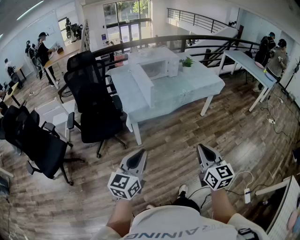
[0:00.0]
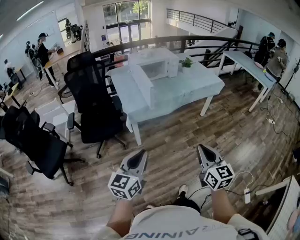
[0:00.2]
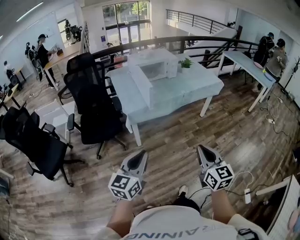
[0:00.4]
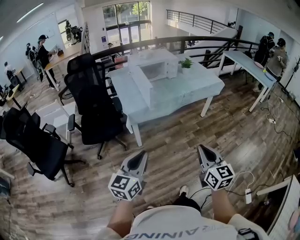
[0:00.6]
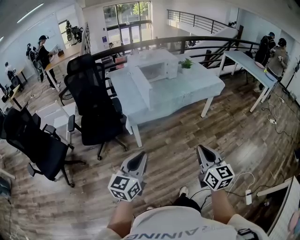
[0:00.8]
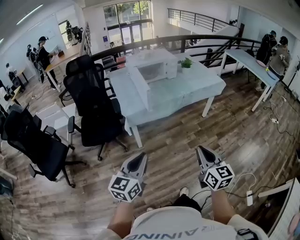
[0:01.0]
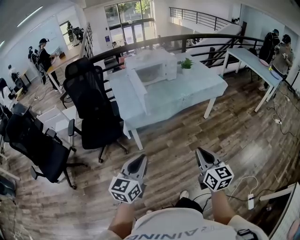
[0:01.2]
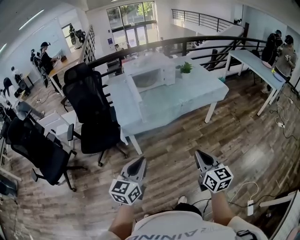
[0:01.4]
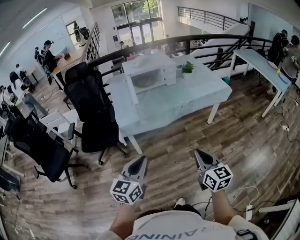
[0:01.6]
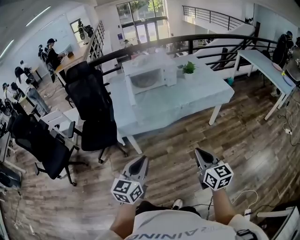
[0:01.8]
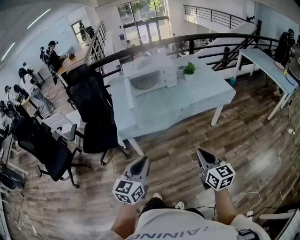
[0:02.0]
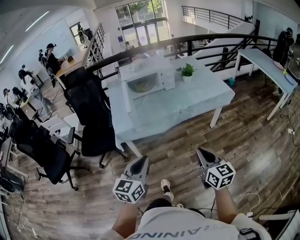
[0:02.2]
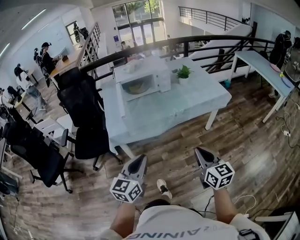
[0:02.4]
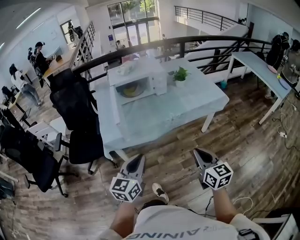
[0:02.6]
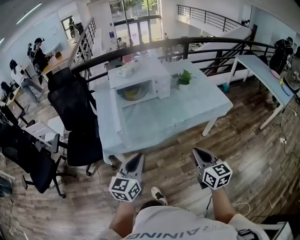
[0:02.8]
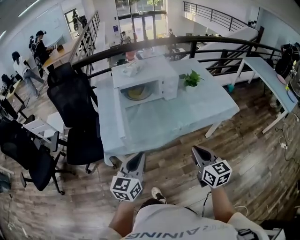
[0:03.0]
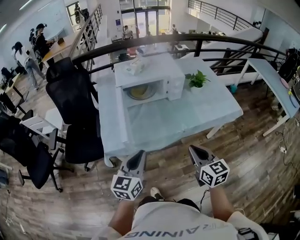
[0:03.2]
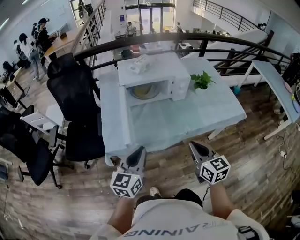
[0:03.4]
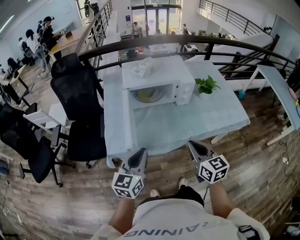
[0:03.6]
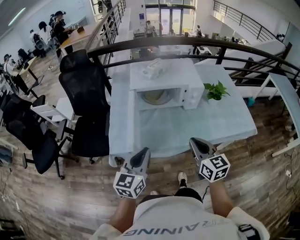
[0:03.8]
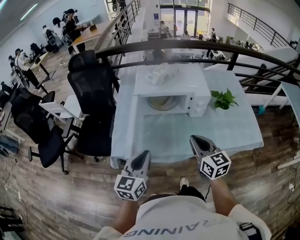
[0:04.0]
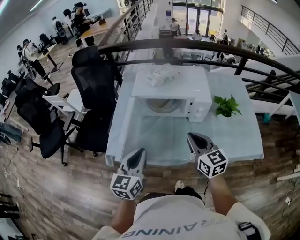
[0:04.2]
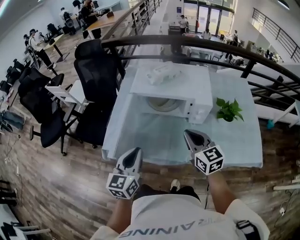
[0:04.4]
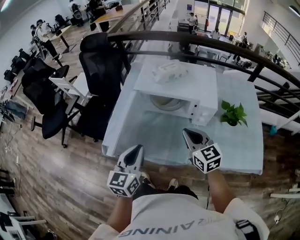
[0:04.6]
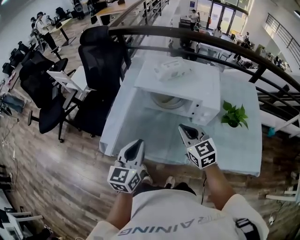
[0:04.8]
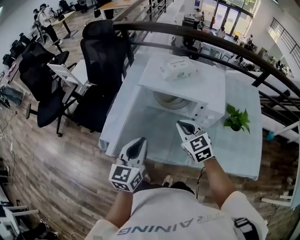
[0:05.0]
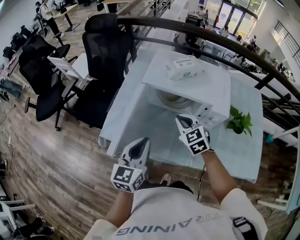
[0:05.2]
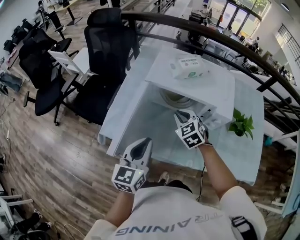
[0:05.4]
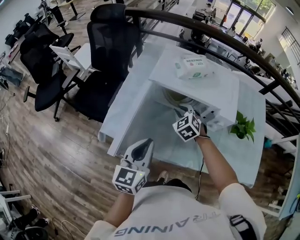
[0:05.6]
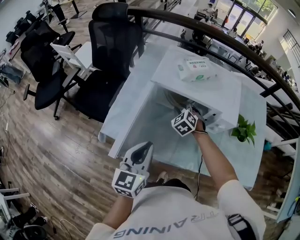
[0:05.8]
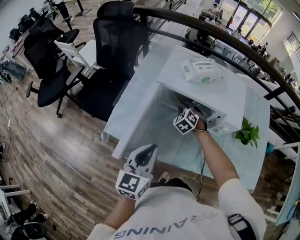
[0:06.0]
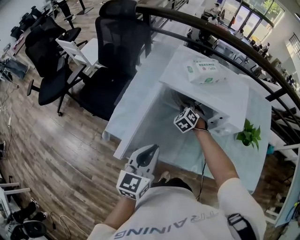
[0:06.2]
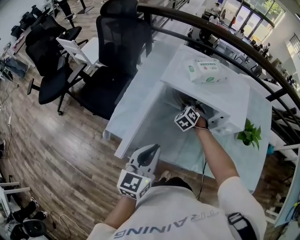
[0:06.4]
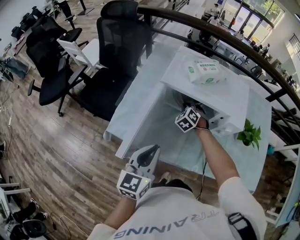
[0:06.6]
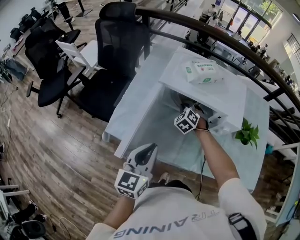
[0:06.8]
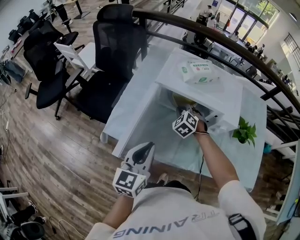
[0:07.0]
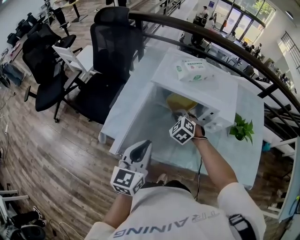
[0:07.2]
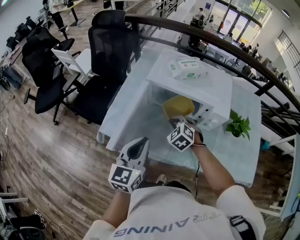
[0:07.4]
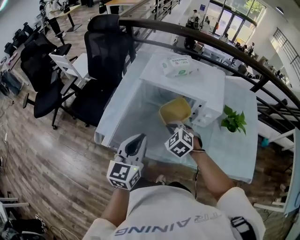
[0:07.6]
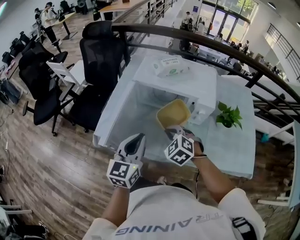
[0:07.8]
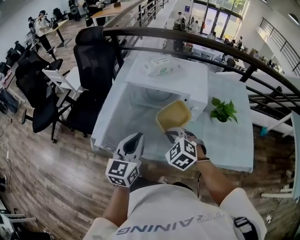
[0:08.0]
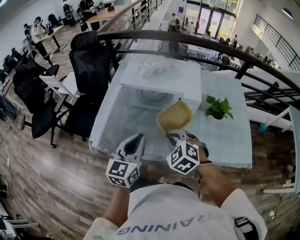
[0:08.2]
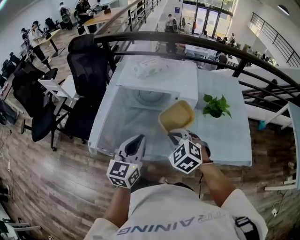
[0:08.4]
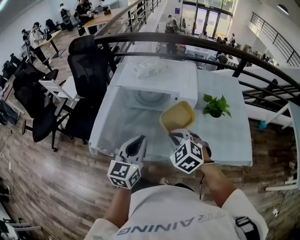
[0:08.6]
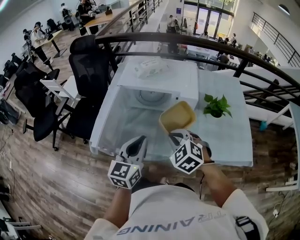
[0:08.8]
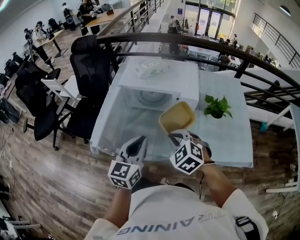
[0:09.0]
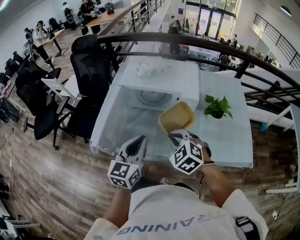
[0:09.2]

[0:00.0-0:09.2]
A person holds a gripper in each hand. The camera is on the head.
0:00.0 to 0:01.6: The right gripper goes roughly 20 cm forward and to the right; the left gripper travels to the right and forward by about 20 cm.
0:01.6 to 0:03.0: Both grippers move forward, roughly 30 cm.
0:03.0 to 0:04.6: The right gripper shifts by some 35 cm, and turns by about 40 degrees, while the left gripper moves roughly 25 cm, and changes its angle by roughly 30 degrees.
0:04.6 to 0:06.2: The right gripper moves forward and downward, about 30 cm, and tilts its fingers roughly 30 degrees downward. The left gripper shifts by roughly 5 cm.
0:06.2 to 0:07.6: The right gripper goes about 20 cm backward and upward.
0:07.6 to 0:09.2: The left gripper is displaced to the right by approximately 10 cm. Meanwhile the right gripper shifts some 15 cm backward, to the right and upward.

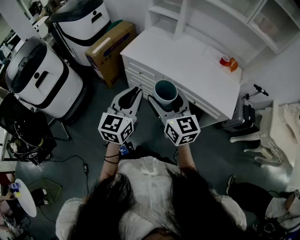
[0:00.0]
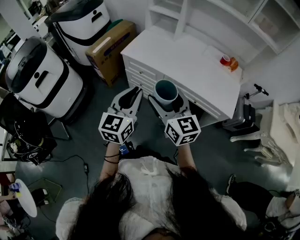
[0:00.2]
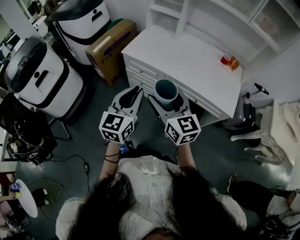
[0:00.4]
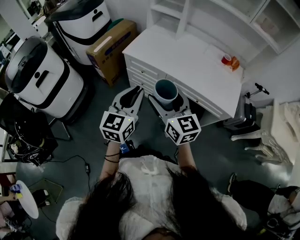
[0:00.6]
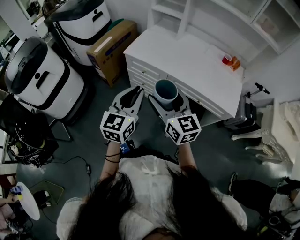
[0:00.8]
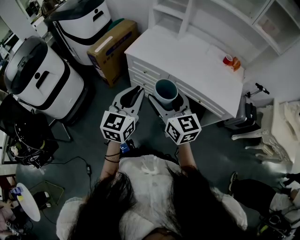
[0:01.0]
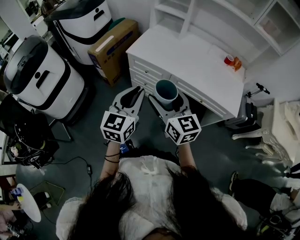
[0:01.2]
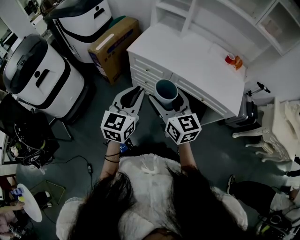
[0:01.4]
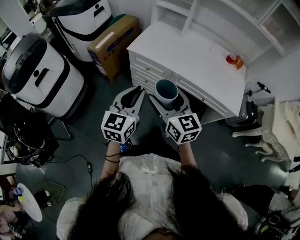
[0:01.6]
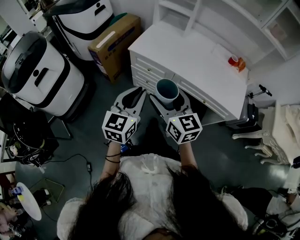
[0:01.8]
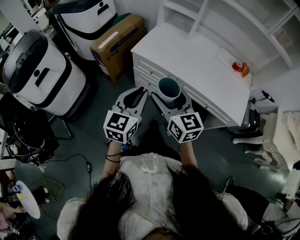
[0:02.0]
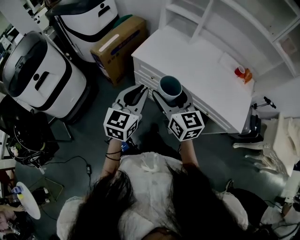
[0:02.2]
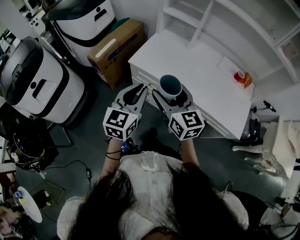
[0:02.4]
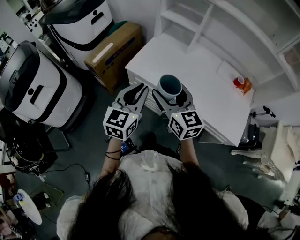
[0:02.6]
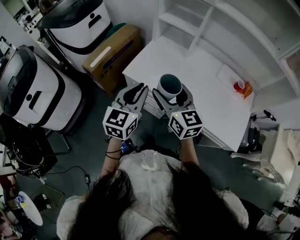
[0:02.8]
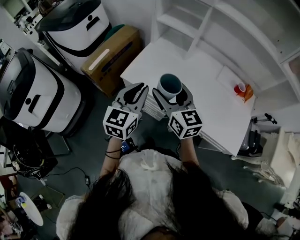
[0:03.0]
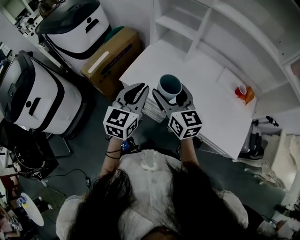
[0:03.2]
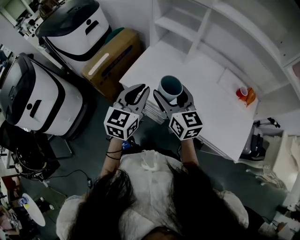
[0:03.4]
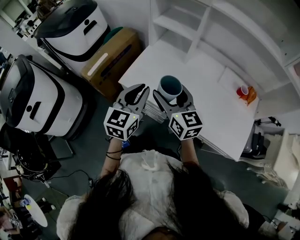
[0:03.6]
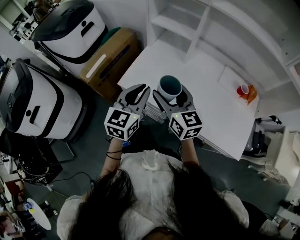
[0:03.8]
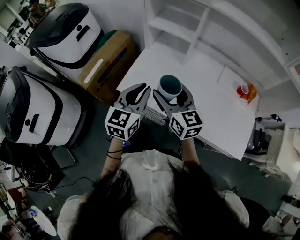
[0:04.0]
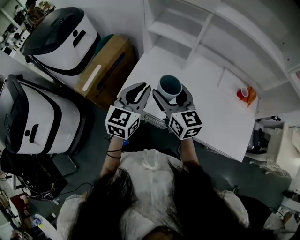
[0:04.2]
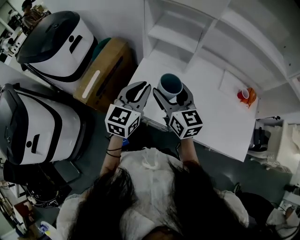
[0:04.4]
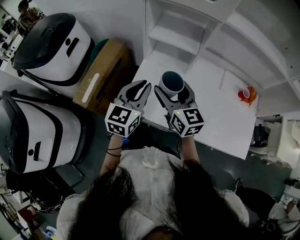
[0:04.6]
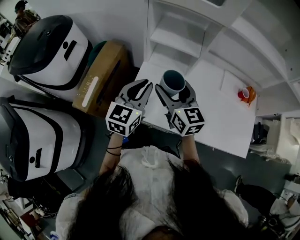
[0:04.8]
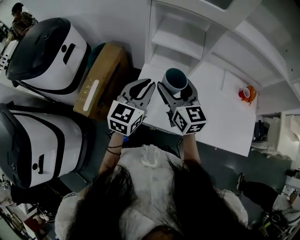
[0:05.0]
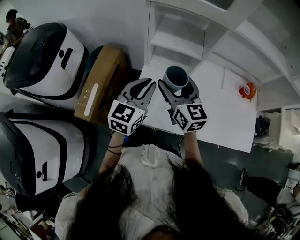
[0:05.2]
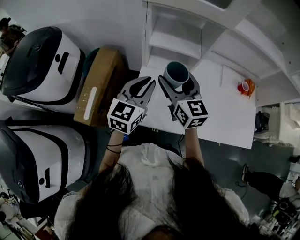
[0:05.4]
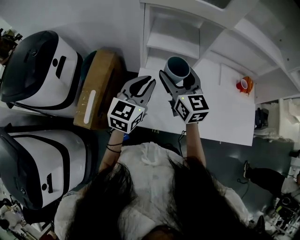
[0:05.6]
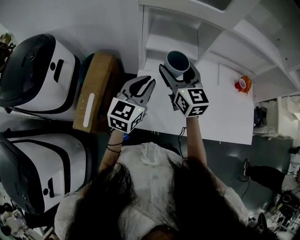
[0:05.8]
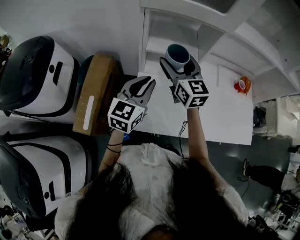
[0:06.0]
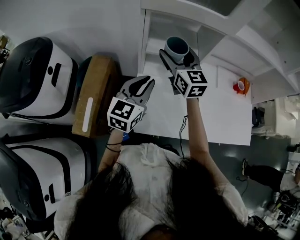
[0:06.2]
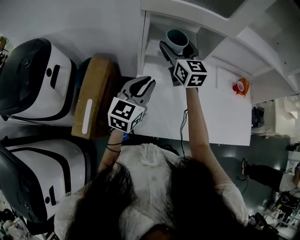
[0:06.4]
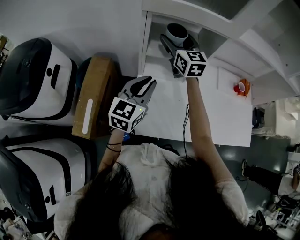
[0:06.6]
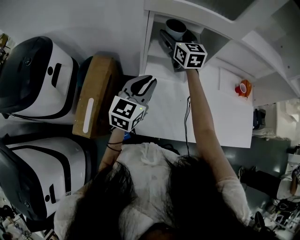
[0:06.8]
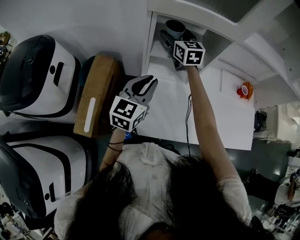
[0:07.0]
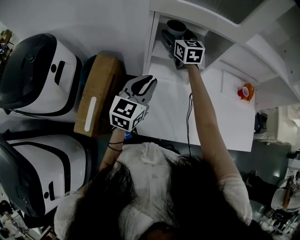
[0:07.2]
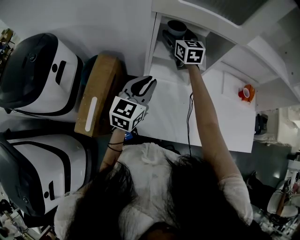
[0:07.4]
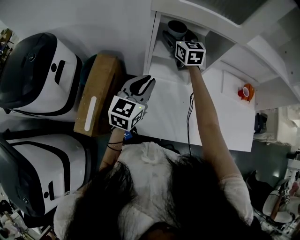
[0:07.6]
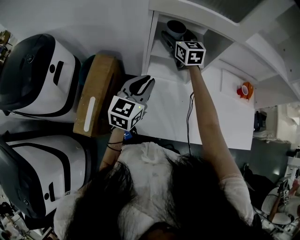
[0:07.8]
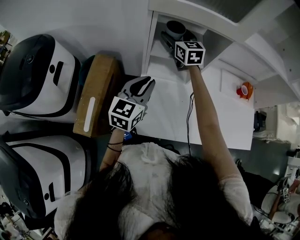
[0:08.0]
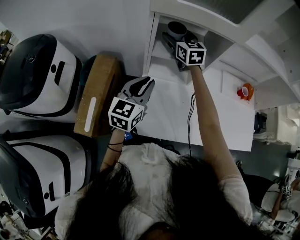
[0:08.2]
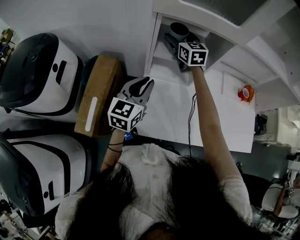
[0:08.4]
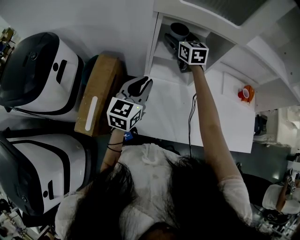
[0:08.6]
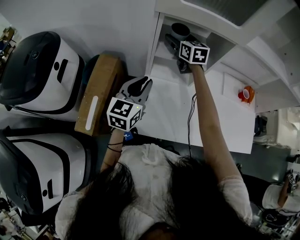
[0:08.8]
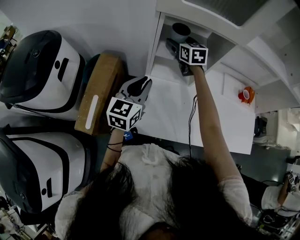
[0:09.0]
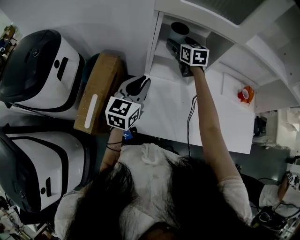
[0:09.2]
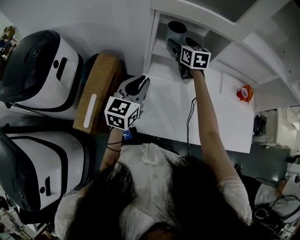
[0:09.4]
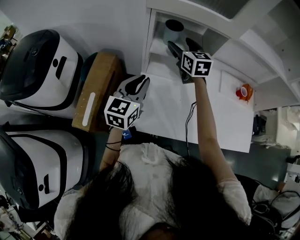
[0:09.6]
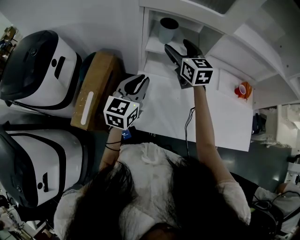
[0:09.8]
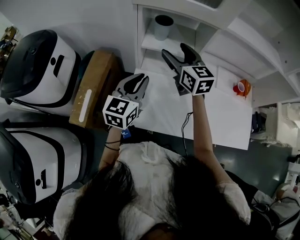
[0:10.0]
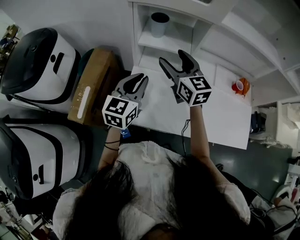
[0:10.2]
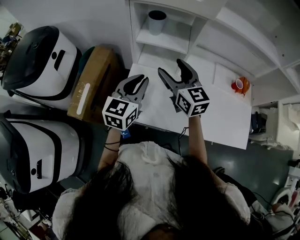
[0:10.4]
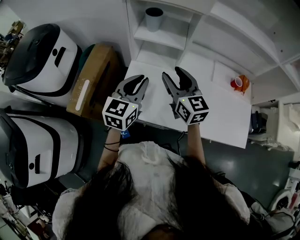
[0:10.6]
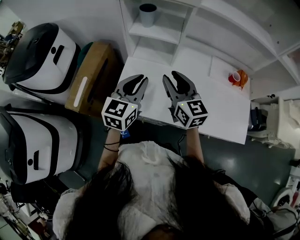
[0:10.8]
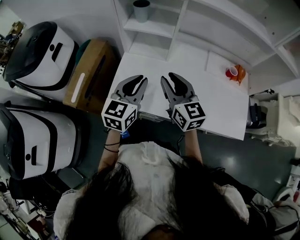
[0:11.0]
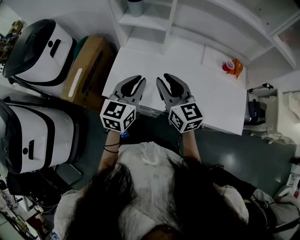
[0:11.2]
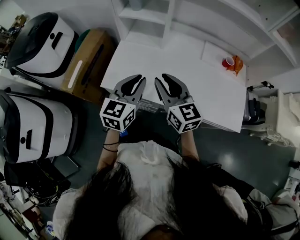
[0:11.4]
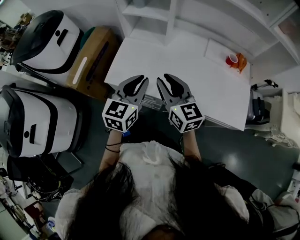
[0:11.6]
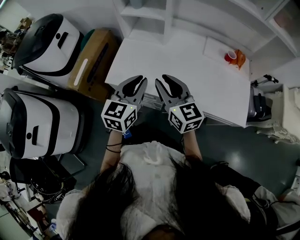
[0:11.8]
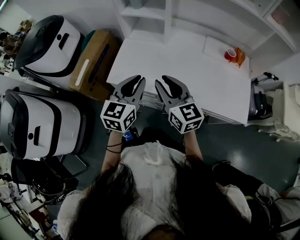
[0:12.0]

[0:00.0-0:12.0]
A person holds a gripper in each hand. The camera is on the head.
0:00.0 to 0:01.6: Both grippers move to the left, roughly 5 cm.
0:01.6 to 0:03.0: Both grippers travel together forward, approximately 30 cm.
0:03.0 to 0:04.4: The grippers both shift forward by approximately 15 cm.
0:04.4 to 0:06.0: The left gripper travels forward and to the left by approximately 15 cm; the right gripper is displaced forward by roughly 20 cm, and turns by about 20 degrees.
0:06.0 to 0:07.6: The right gripper heads forward, covering roughly 20 cm.
0:07.6 to 0:09.0: The grippers make only small movements.
0:09.0 to 0:10.4: The left gripper is displaced to the right and backward by some 10 cm, while the right gripper shifts approximately 25 cm backward.
0:10.4 to 0:12.0: The left gripper moves backward and to the right, roughly 25 cm, while the right gripper heads backward, covering roughly 25 cm, and closes.

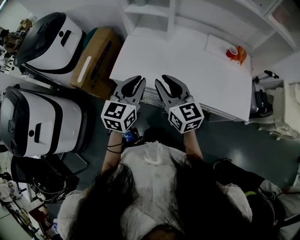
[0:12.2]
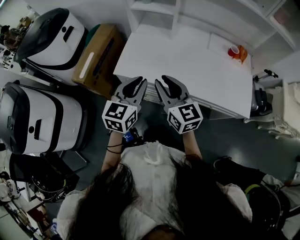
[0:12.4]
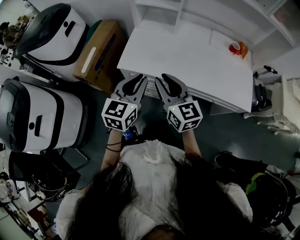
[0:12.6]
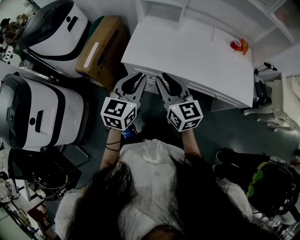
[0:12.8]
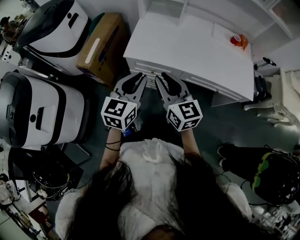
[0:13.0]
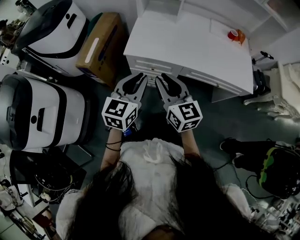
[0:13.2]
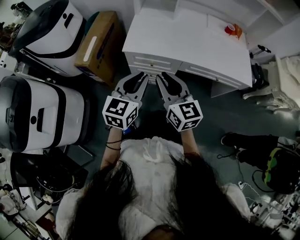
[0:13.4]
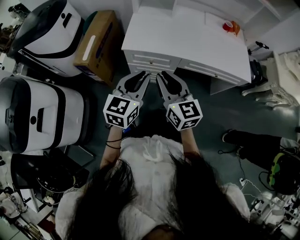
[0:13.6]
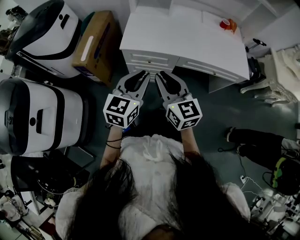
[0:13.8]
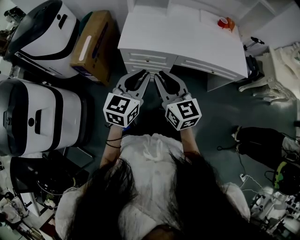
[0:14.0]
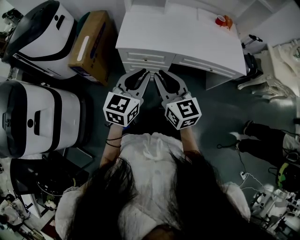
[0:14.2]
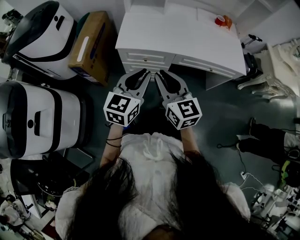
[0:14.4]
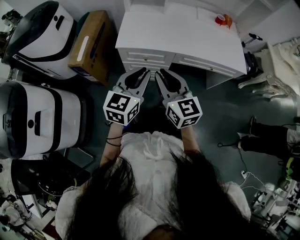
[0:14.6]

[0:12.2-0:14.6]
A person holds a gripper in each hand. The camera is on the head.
0:12.2 to 0:13.4: Both grippers travel together backward and to the left, roughly 20 cm.
0:13.4 to 0:14.6: The grippers move only a little.
